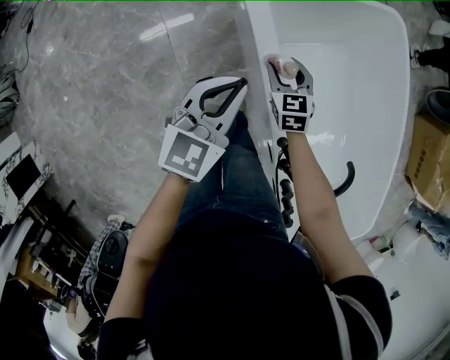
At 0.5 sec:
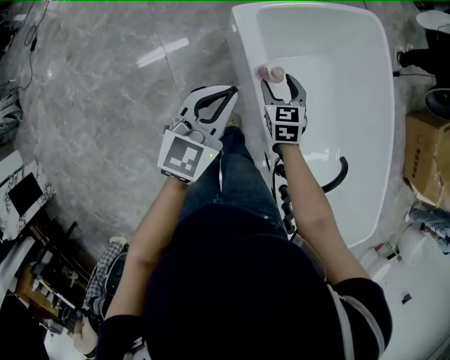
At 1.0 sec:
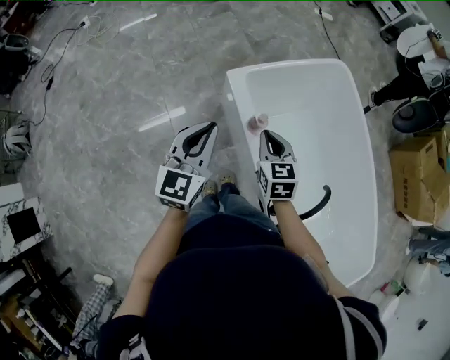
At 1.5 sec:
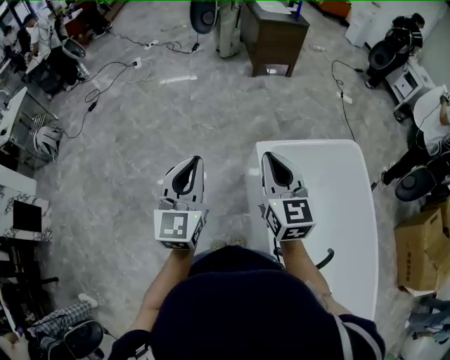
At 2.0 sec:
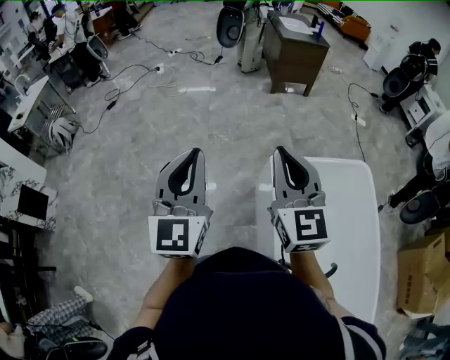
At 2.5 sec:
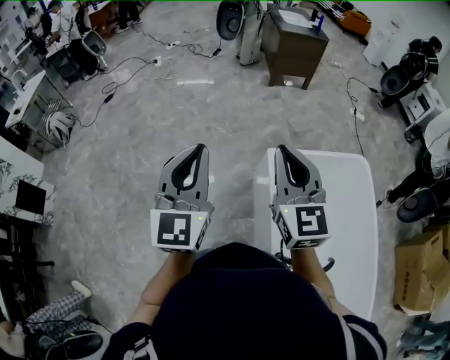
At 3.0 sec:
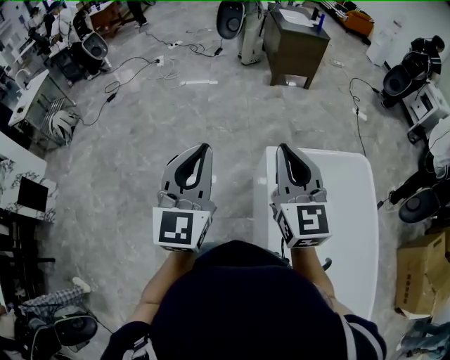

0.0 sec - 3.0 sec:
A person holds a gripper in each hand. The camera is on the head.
0.0 sec - 1.5 sec: The left gripper moves upward, roughly 25 cm, and changes its angle by roughly 40 degrees; the right gripper travels upward by roughly 40 cm, angles its fingers upward, by approximately 30 degrees, and closes up.
1.5 sec - 3.0 sec: The two grippers go roughly 10 cm upward.

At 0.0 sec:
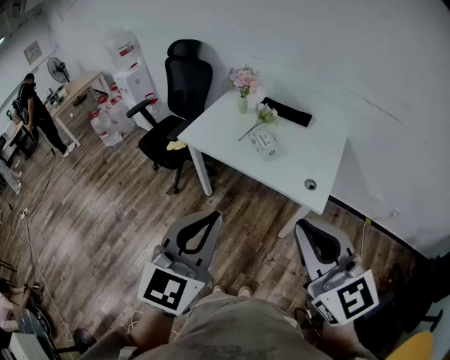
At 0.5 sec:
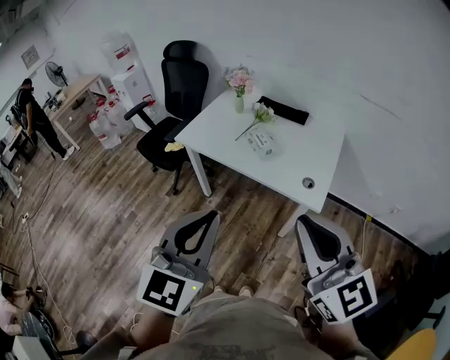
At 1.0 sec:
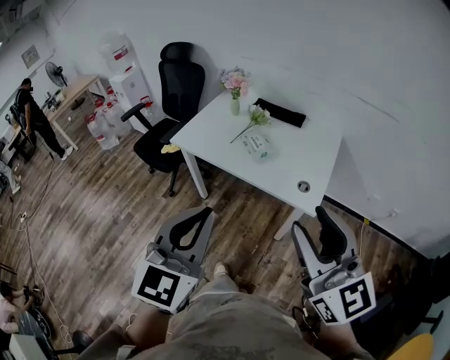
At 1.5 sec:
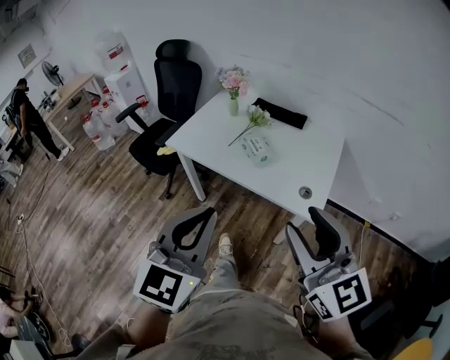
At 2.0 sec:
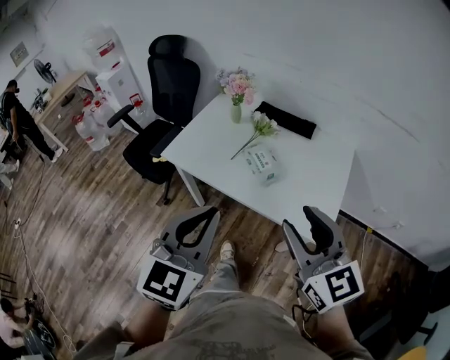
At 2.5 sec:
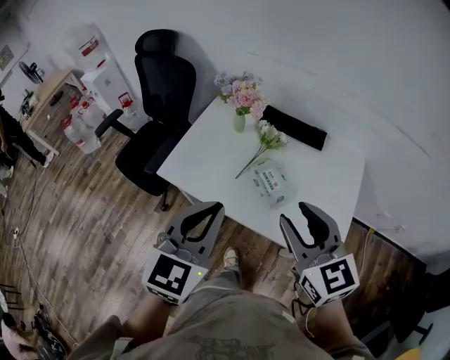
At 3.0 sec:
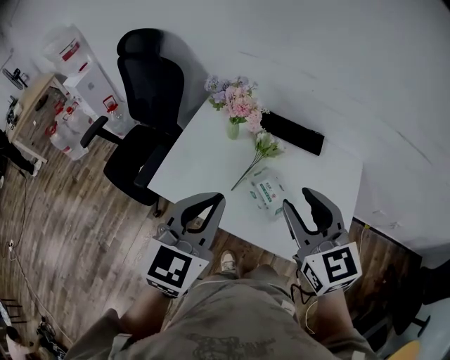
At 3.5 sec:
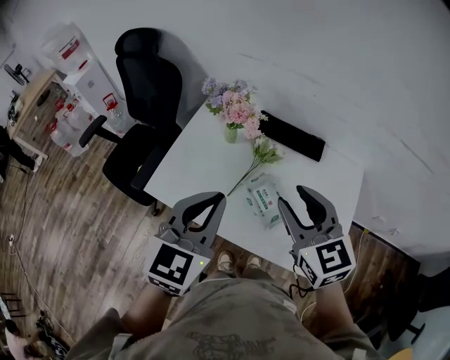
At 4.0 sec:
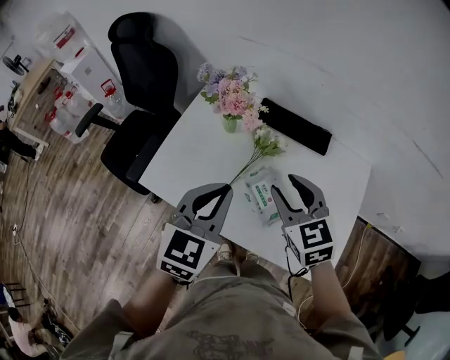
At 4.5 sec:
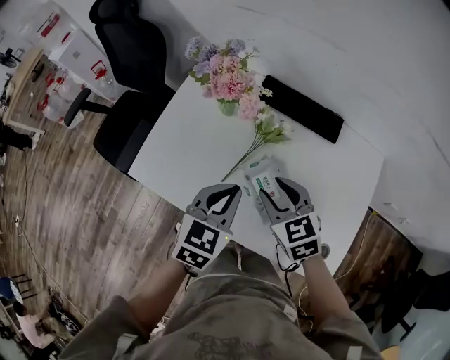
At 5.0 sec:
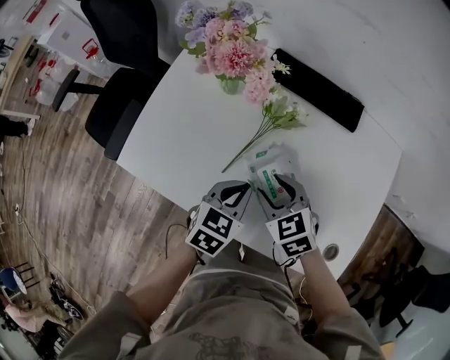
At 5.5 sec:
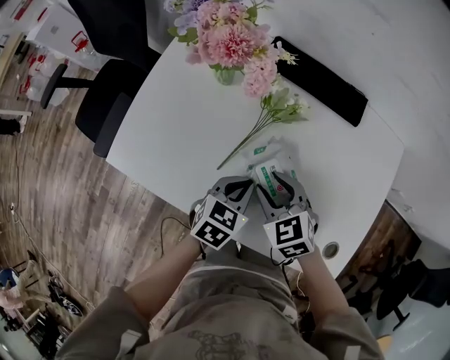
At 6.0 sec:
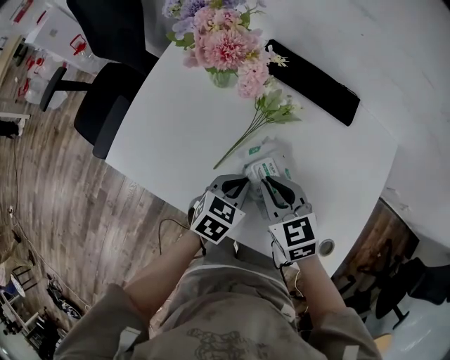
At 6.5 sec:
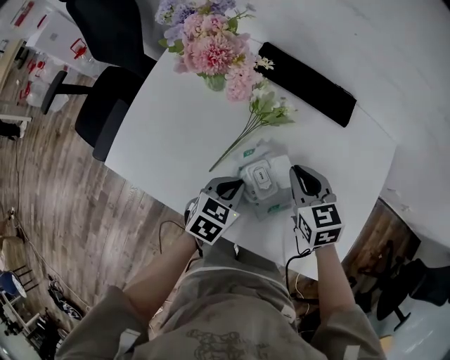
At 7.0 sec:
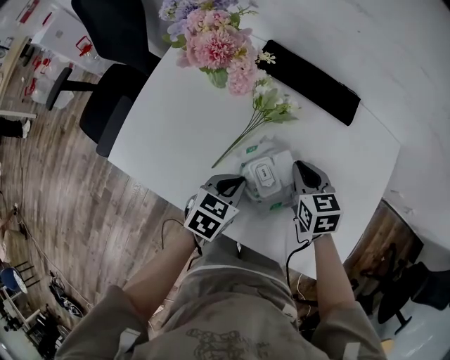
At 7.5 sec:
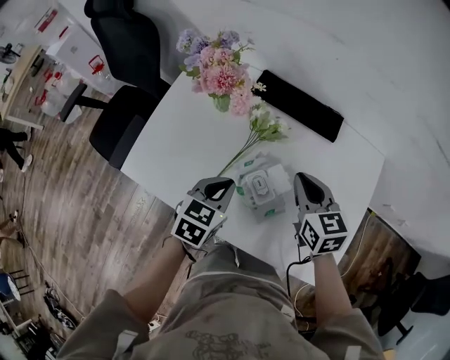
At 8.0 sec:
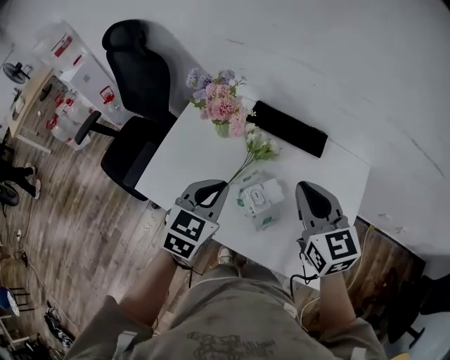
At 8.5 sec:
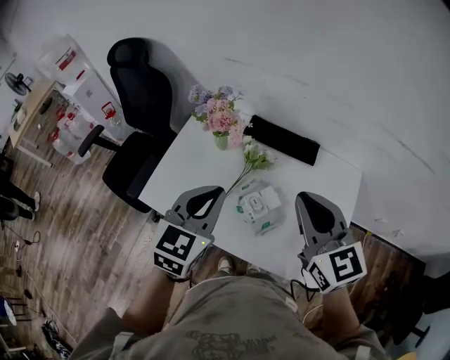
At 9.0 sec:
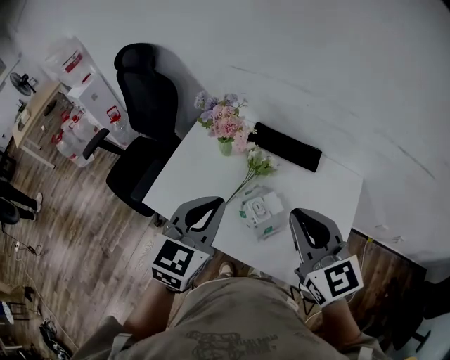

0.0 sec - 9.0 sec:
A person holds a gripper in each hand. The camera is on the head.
0.0 sec - 2.0 sec: The two grippers go about 20 cm forward. The right gripper opens its fingers.
2.0 sec - 4.5 sec: The grippers both shift forward and downward by some 40 cm. The right gripper angles its fingers downward, by about 30 degrees; the left gripper swivels about 30 degrees.
4.5 sec - 7.0 sec: The right gripper moves downward and to the right, about 15 cm, and closes; the left gripper travels downward by some 20 cm.
7.0 sec - 9.0 sec: Both grippers travel together upward, some 35 cm. The right gripper angles its fingers upward, by approximately 30 degrees. The left gripper changes its angle by about 40 degrees.

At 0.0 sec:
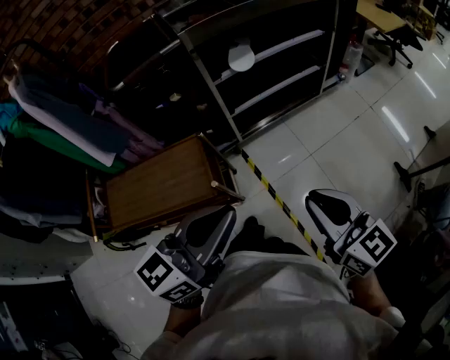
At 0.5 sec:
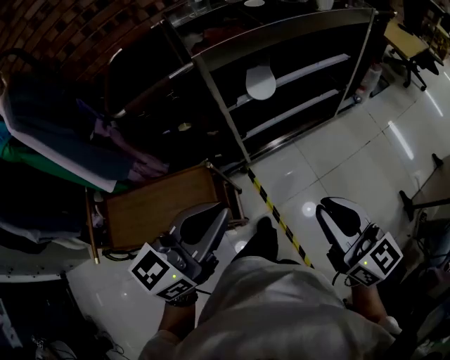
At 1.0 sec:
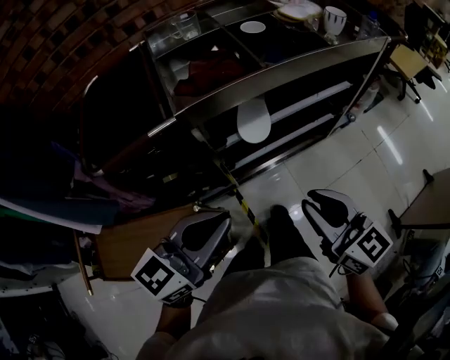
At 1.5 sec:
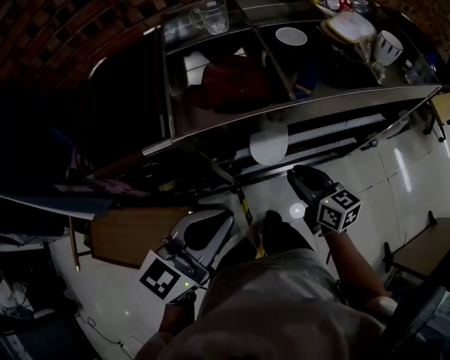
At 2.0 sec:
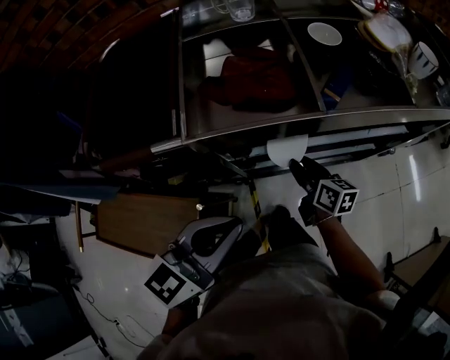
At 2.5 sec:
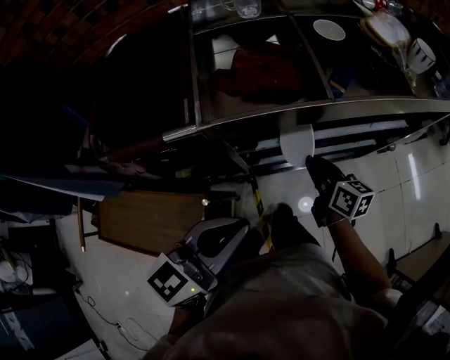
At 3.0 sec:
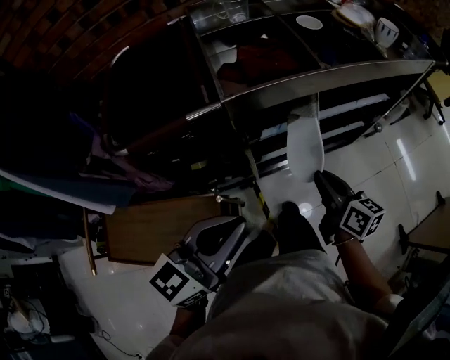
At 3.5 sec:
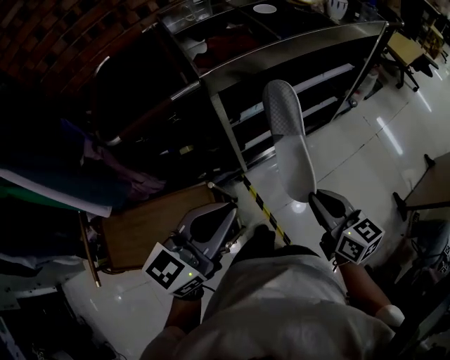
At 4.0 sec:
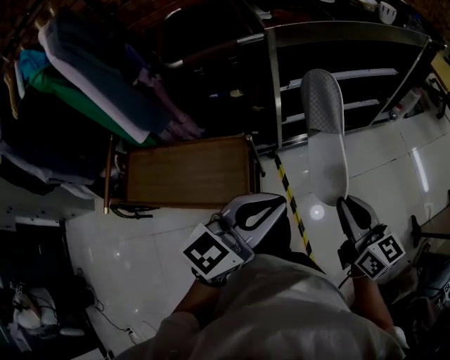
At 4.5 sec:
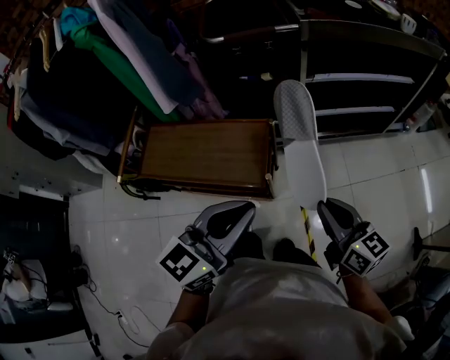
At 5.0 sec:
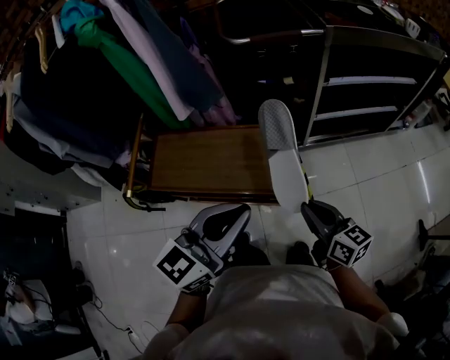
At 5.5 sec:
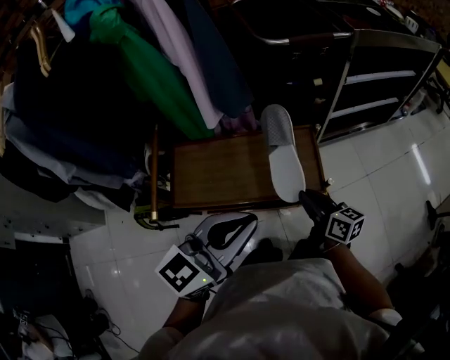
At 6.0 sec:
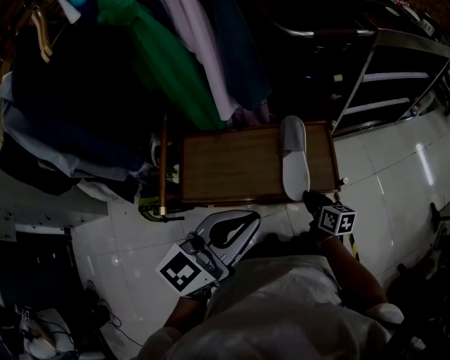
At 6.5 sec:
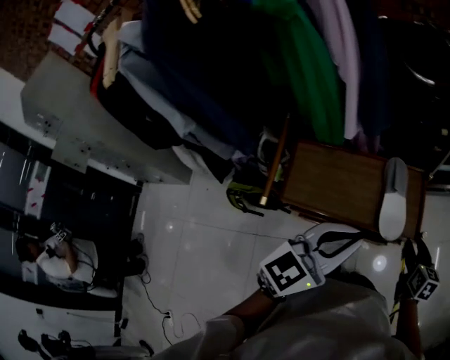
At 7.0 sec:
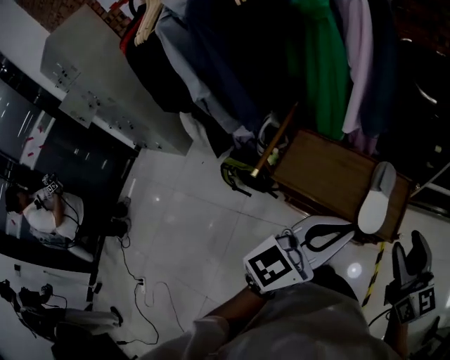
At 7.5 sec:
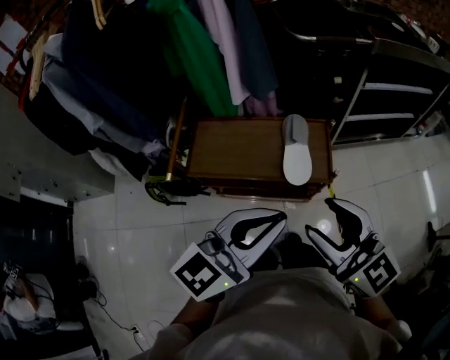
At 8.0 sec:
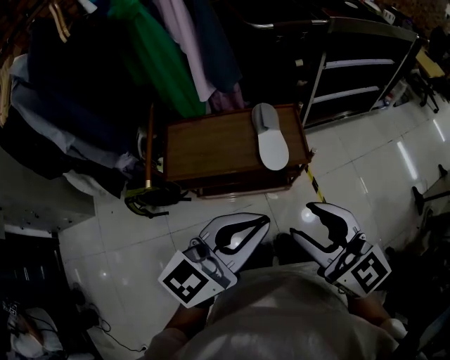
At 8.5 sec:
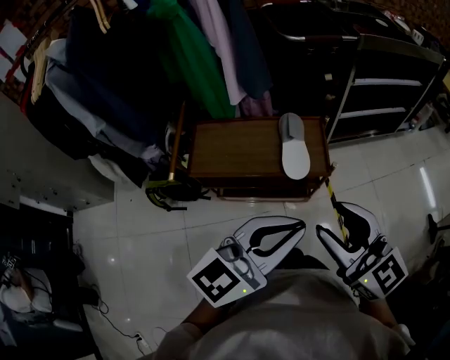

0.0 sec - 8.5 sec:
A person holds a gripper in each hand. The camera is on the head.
0.0 sec - 2.0 sec: The two grippers travel together, forward, approximately 50 cm. The left gripper rotates approximately 20 degrees; the right gripper heads downward, covering roughly 25 cm, changes its angle by approximately 30 degrees, and opens its fingers.
2.0 sec - 4.0 sec: The right gripper heads backward and upward, covering about 50 cm, changes its angle by about 20 degrees, and closes up, while the left gripper moves backward, approximately 30 cm.
4.0 sec - 6.5 sec: The right gripper goes about 30 cm to the left and downward, rotates approximately 30 degrees, and opens up. The left gripper travels to the left by roughly 35 cm.
6.5 sec - 8.5 sec: The right gripper moves upward and backward, about 30 cm, and tilts its fingers about 30 degrees upward. Meanwhile the left gripper heads backward, to the right and upward, covering approximately 20 cm.

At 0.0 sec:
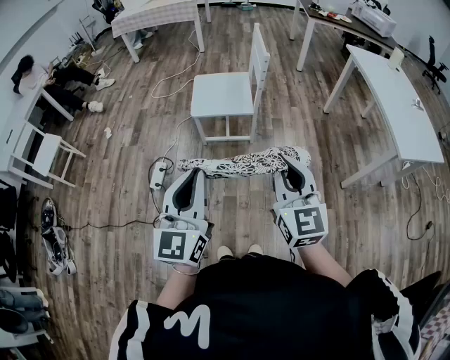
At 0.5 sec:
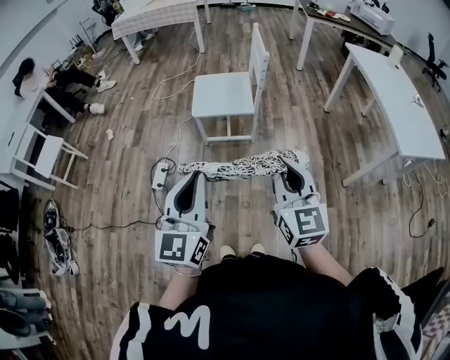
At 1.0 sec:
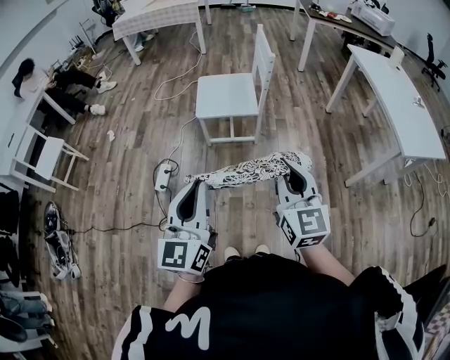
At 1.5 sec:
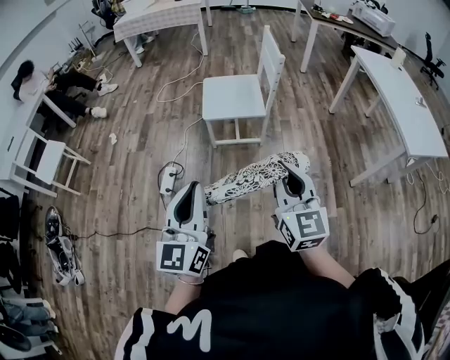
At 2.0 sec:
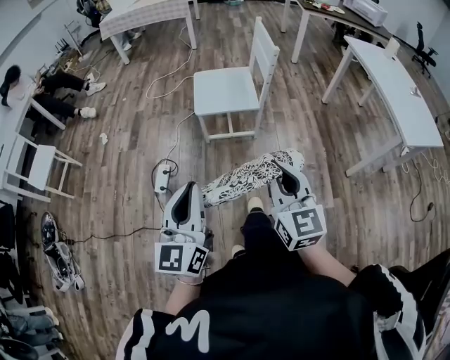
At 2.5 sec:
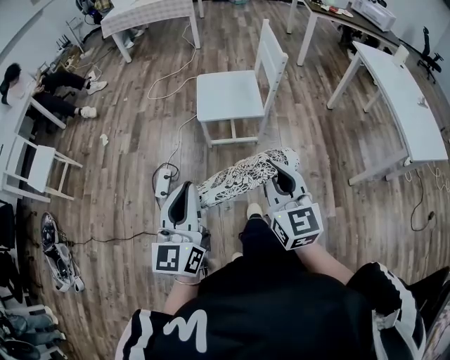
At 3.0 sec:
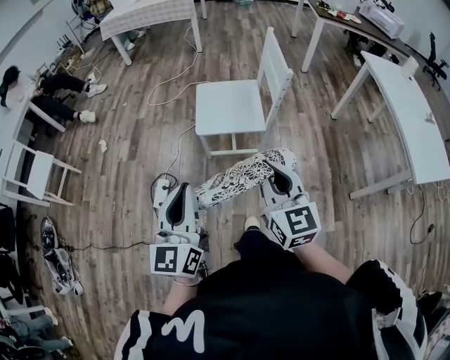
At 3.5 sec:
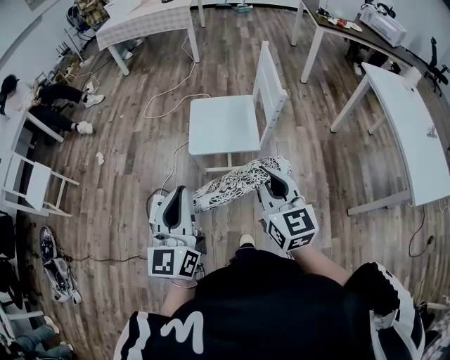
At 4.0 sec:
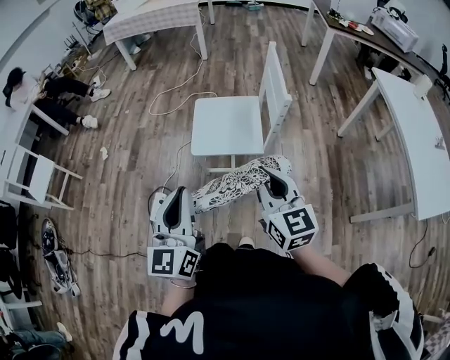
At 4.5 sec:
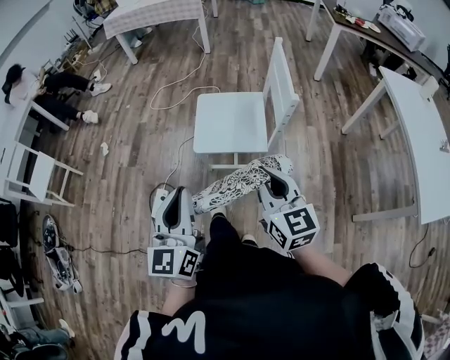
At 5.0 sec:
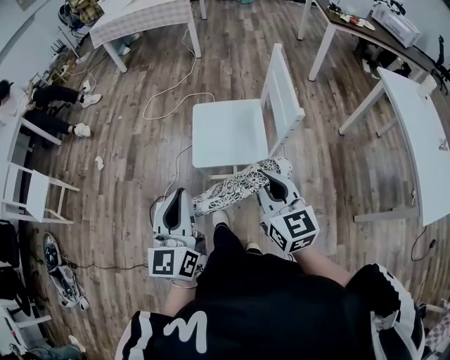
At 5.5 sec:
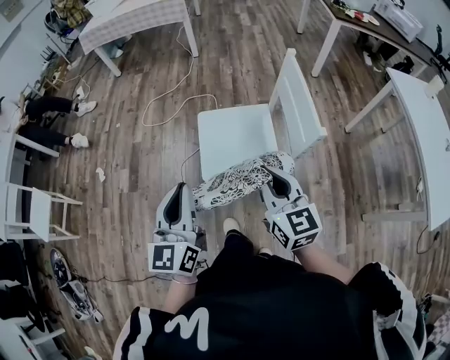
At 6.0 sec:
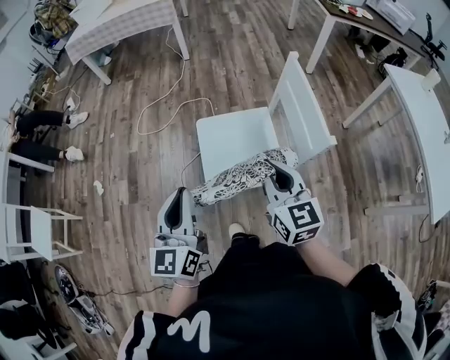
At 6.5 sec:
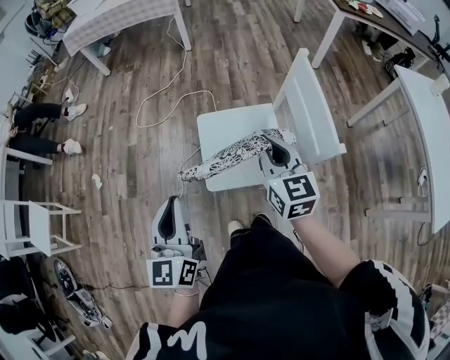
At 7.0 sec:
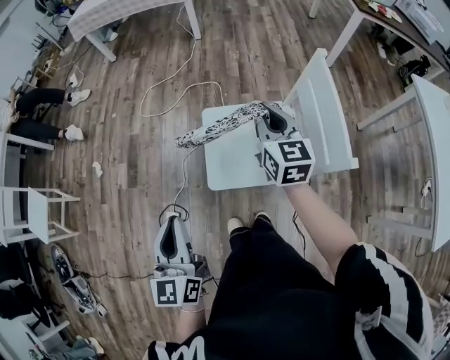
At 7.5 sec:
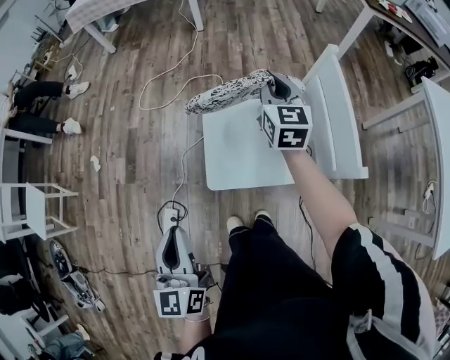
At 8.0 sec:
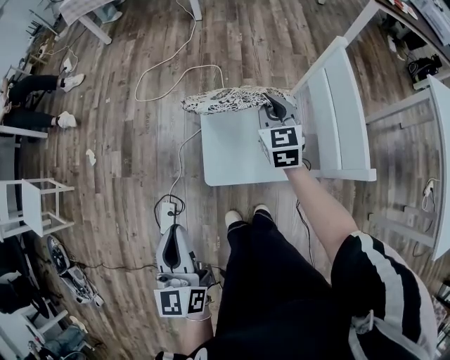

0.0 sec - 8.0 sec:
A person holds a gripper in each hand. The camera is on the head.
0.0 sec - 2.0 sec: Both grippers travel together to the left, roughly 10 cm.
2.0 sec - 4.0 sec: Both grippers travel together forward, about 25 cm.
4.0 sec - 6.0 sec: The grippers both shift forward by approximately 25 cm.
6.0 sec - 8.0 sec: The left gripper moves downward, about 10 cm, and changes its angle by roughly 20 degrees; the right gripper moves forward and downward, about 30 cm.
